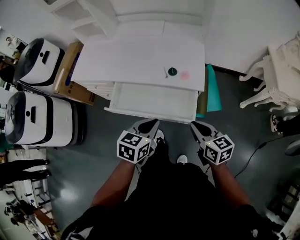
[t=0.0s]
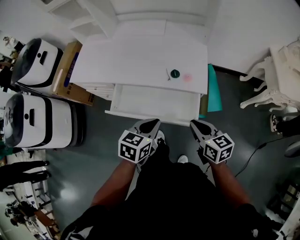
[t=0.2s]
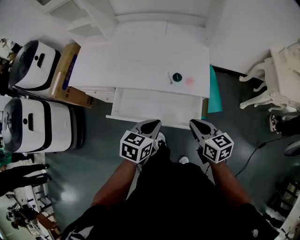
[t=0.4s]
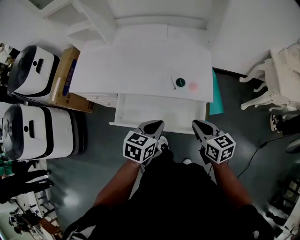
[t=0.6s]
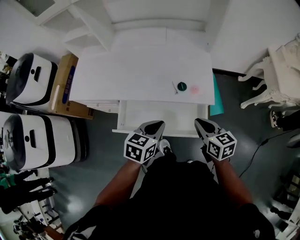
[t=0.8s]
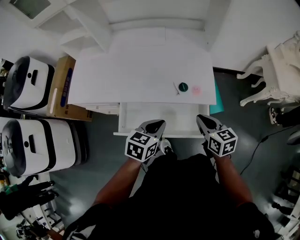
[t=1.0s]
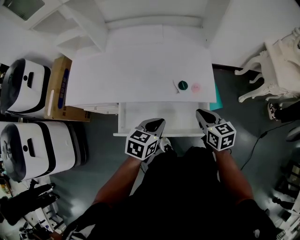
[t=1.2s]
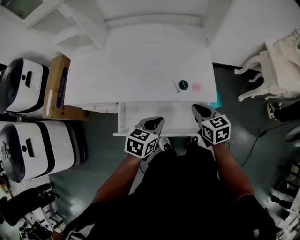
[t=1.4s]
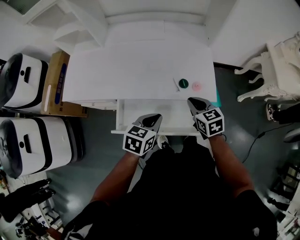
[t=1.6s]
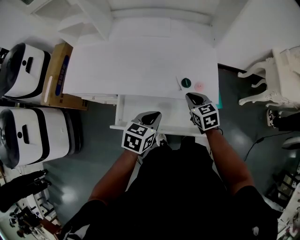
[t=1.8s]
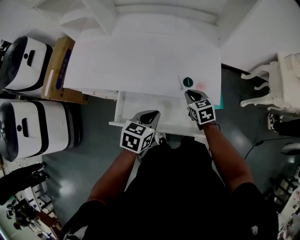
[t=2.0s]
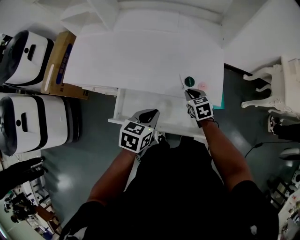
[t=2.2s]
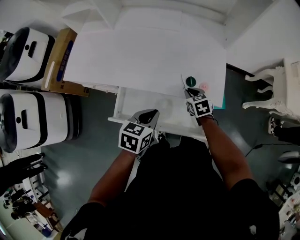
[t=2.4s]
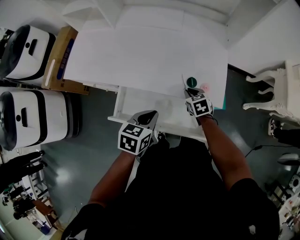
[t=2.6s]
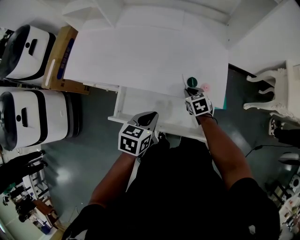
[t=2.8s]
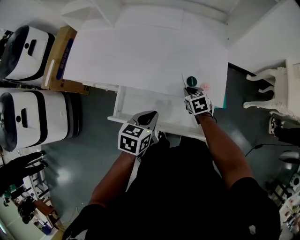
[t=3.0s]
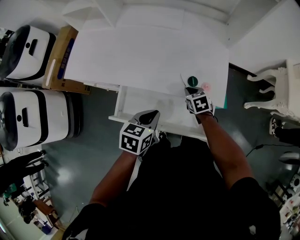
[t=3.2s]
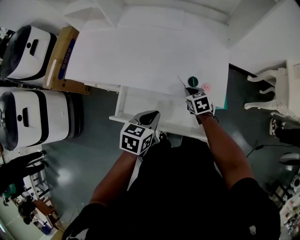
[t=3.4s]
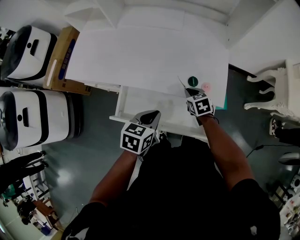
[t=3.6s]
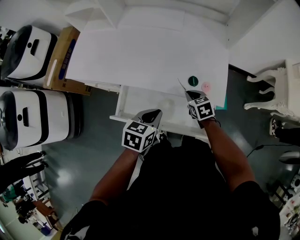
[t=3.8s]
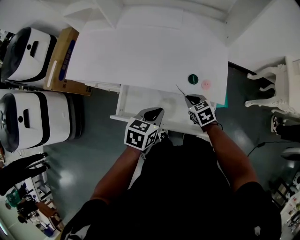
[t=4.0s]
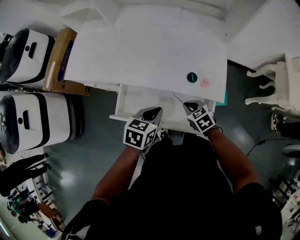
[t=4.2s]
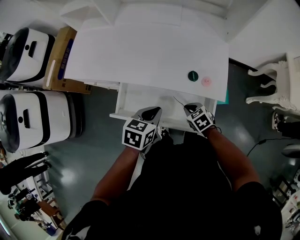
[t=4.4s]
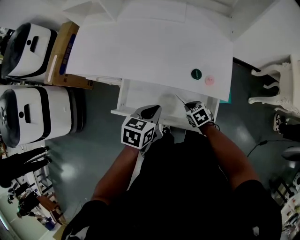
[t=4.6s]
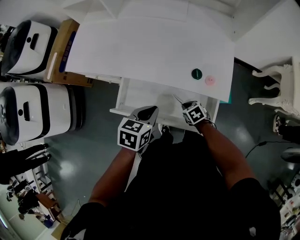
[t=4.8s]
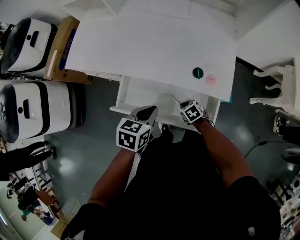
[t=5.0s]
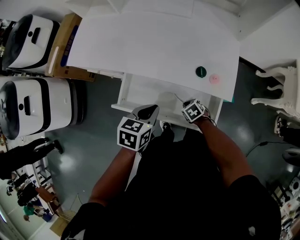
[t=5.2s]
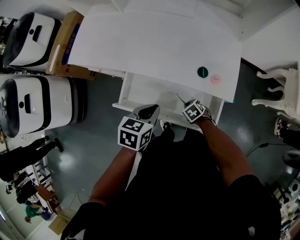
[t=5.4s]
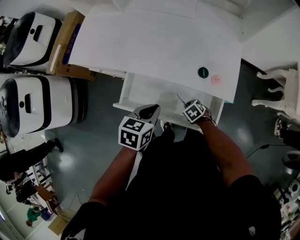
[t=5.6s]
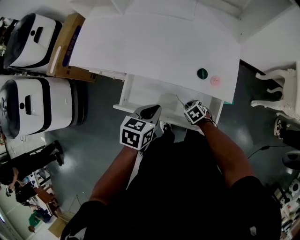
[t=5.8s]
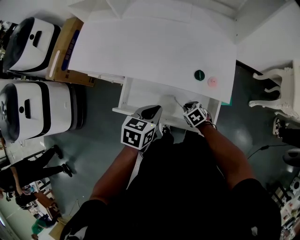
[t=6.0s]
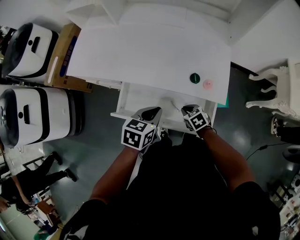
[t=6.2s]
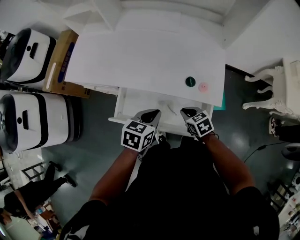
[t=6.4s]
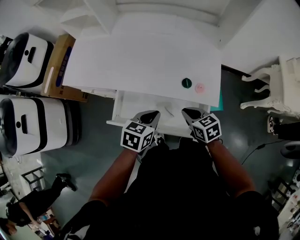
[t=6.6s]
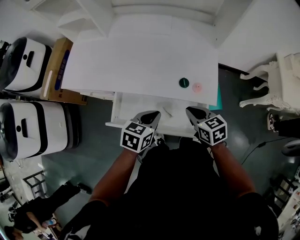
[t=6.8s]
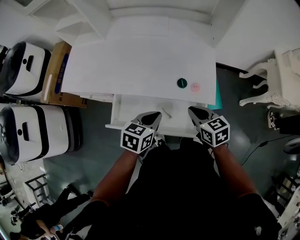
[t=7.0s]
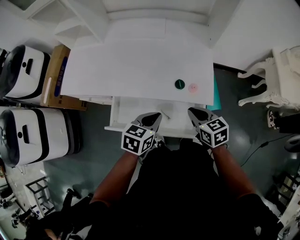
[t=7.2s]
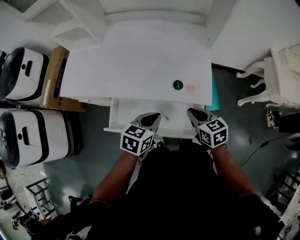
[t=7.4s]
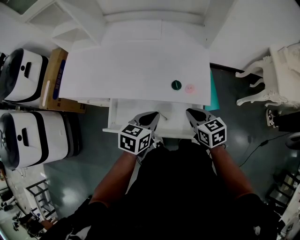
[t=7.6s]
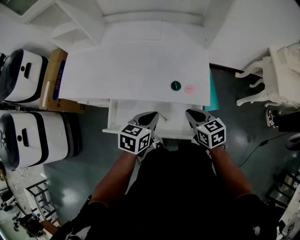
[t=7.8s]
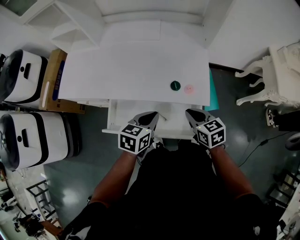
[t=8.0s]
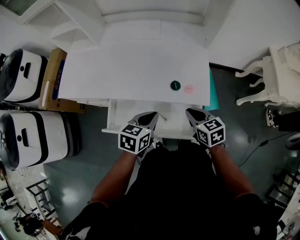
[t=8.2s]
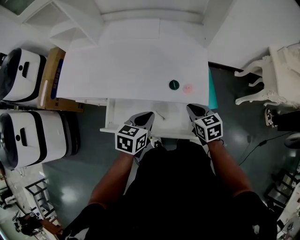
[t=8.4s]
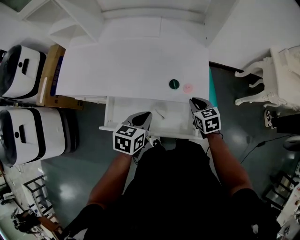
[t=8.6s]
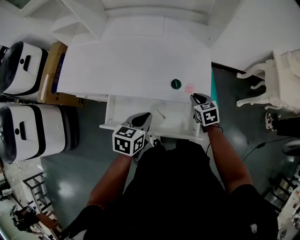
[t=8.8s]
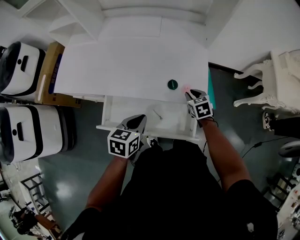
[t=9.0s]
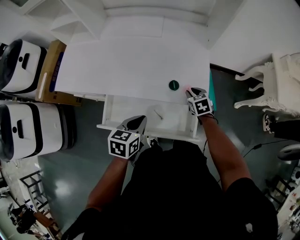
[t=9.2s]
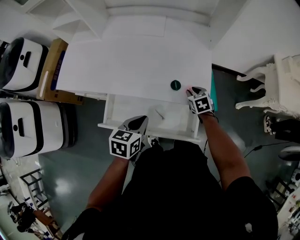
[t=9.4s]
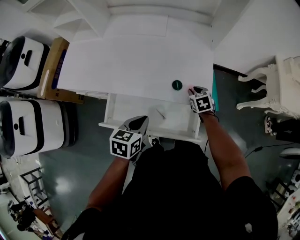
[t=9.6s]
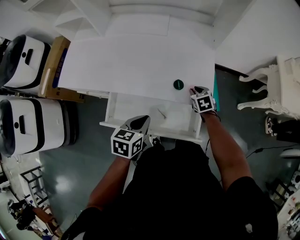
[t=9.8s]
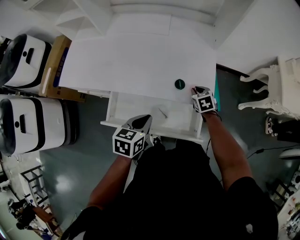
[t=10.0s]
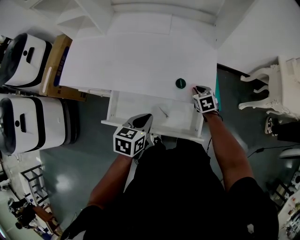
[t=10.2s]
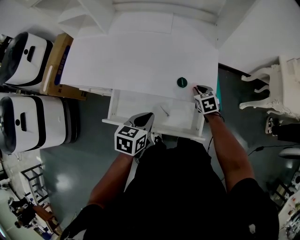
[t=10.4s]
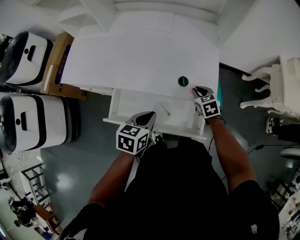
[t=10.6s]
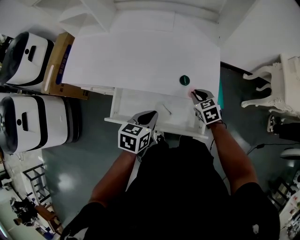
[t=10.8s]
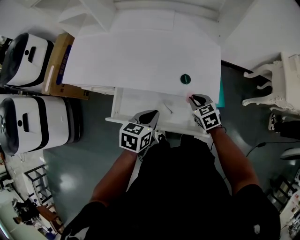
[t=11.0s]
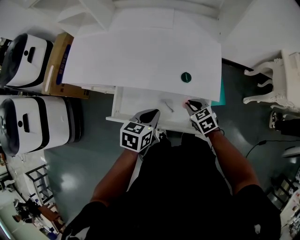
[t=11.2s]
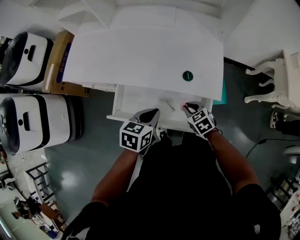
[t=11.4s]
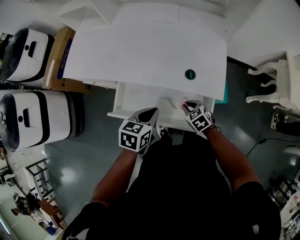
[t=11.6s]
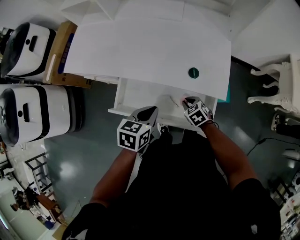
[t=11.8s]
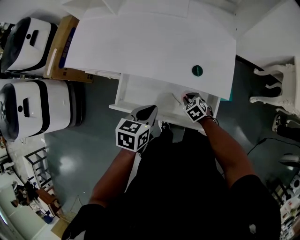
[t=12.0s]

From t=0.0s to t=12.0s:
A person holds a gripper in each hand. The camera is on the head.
From t=0.0s to t=1.6s: The left gripper shifts approximately 15 cm forward, to the left and downward. The right gripper goes about 25 cm forward and to the left, and turns by approximately 20 degrees.
From t=1.6s to t=3.0s: The right gripper moves downward and forward, some 15 cm.
From t=3.0s to t=4.4s: The right gripper moves backward, approximately 10 cm.
From t=4.4s to t=6.0s: The right gripper shifts about 5 cm downward.
From t=6.0s to t=7.6s: The right gripper travels upward by about 20 cm, and turns by roughly 40 degrees; the left gripper is displaced to the right by about 5 cm.
From t=7.6s to t=9.0s: The right gripper shifts about 15 cm forward and downward.
From t=9.0s to t=10.4s: The grippers stay close to where they were, moving slightly.
From t=10.4s to t=12.0s: The right gripper heads to the left, backward and downward, covering roughly 20 cm, and swivels roughly 20 degrees.

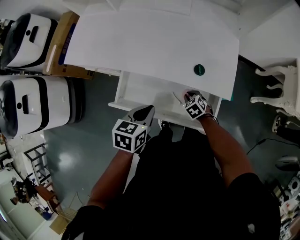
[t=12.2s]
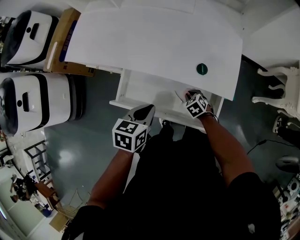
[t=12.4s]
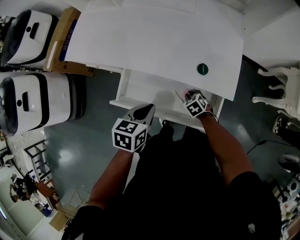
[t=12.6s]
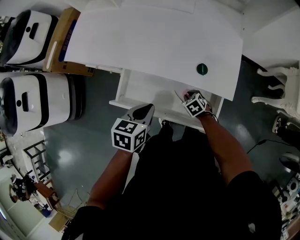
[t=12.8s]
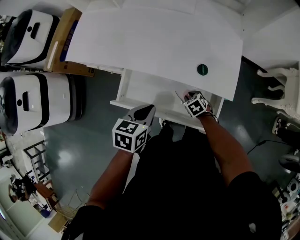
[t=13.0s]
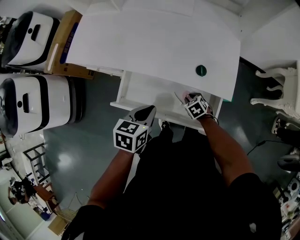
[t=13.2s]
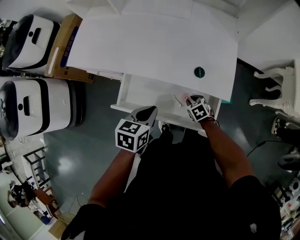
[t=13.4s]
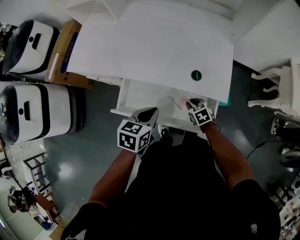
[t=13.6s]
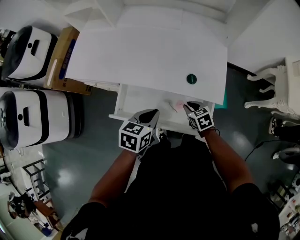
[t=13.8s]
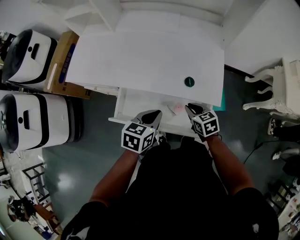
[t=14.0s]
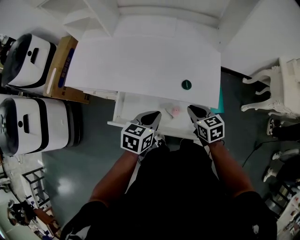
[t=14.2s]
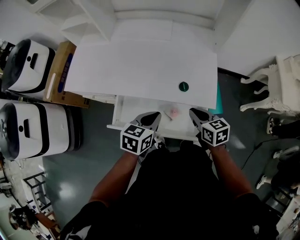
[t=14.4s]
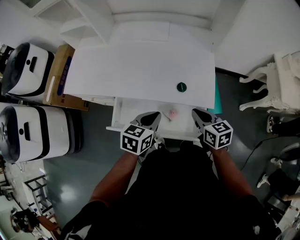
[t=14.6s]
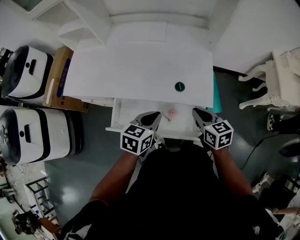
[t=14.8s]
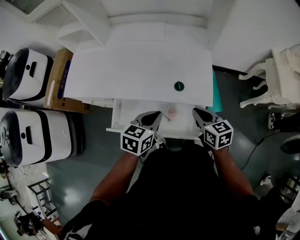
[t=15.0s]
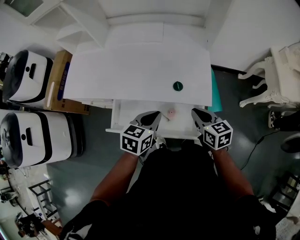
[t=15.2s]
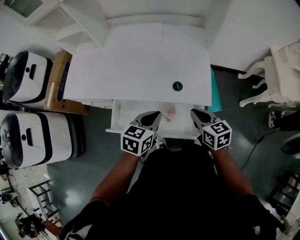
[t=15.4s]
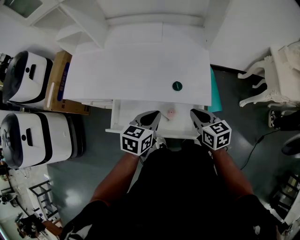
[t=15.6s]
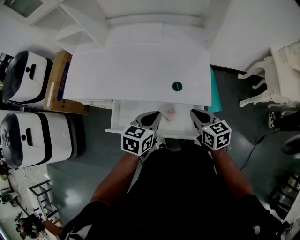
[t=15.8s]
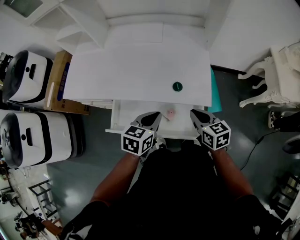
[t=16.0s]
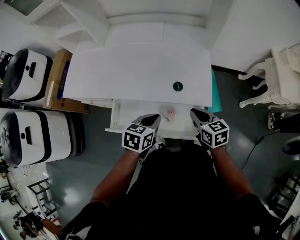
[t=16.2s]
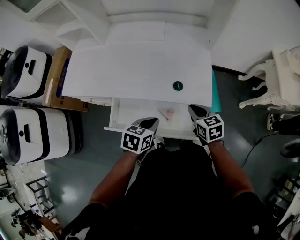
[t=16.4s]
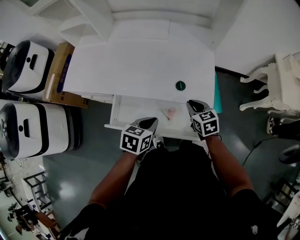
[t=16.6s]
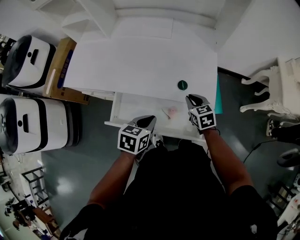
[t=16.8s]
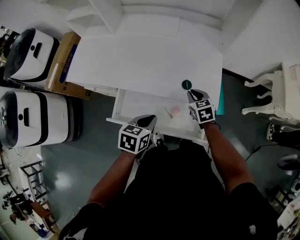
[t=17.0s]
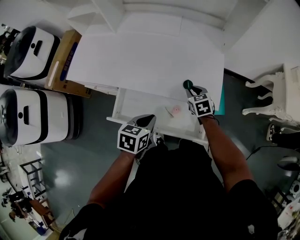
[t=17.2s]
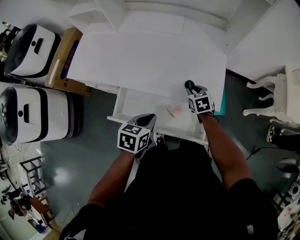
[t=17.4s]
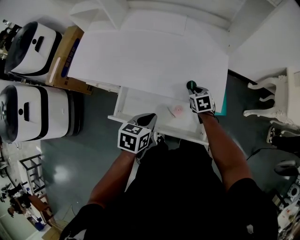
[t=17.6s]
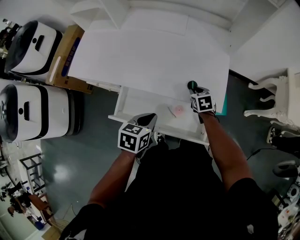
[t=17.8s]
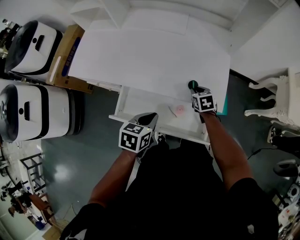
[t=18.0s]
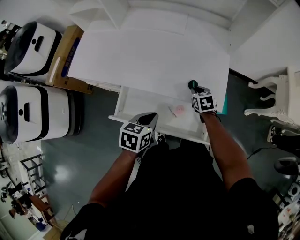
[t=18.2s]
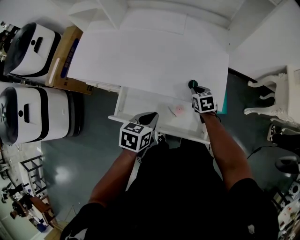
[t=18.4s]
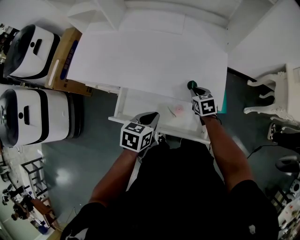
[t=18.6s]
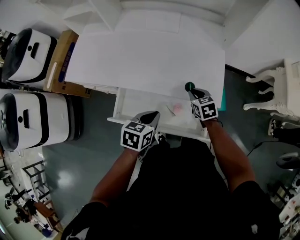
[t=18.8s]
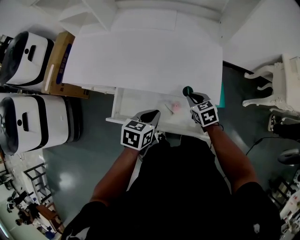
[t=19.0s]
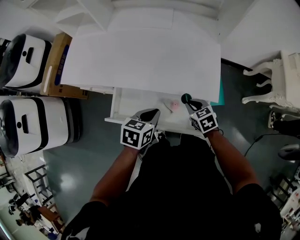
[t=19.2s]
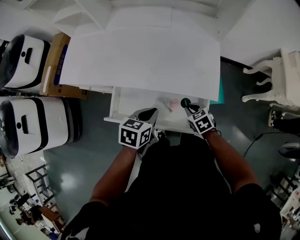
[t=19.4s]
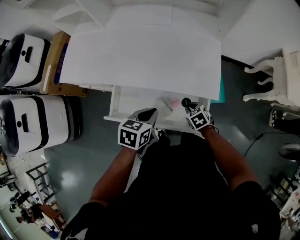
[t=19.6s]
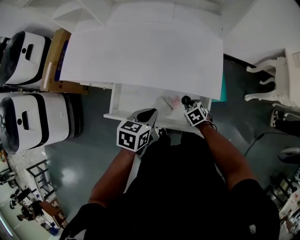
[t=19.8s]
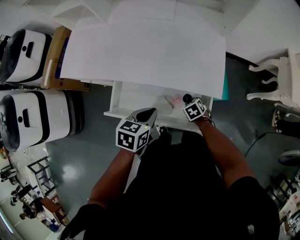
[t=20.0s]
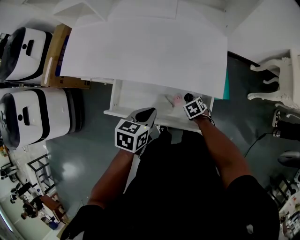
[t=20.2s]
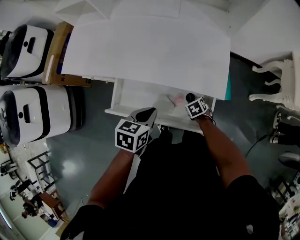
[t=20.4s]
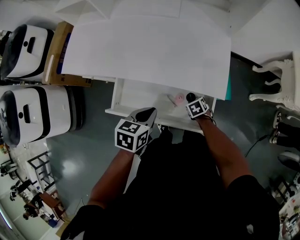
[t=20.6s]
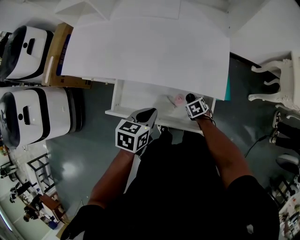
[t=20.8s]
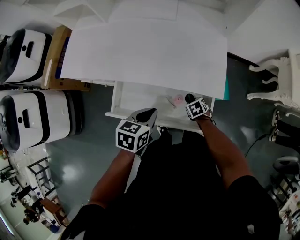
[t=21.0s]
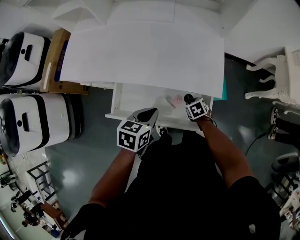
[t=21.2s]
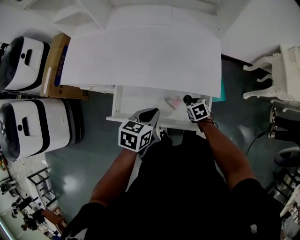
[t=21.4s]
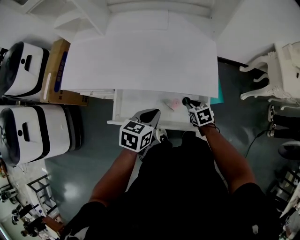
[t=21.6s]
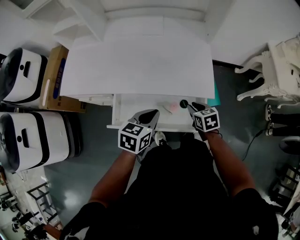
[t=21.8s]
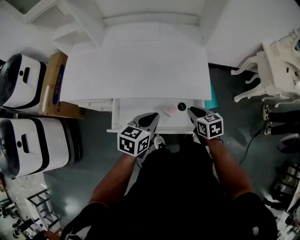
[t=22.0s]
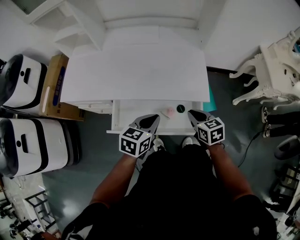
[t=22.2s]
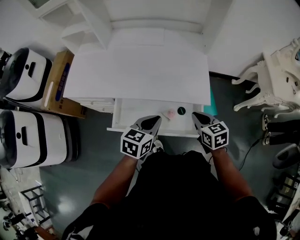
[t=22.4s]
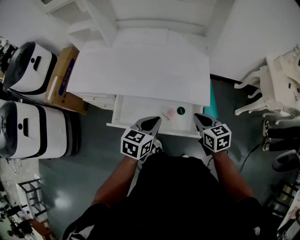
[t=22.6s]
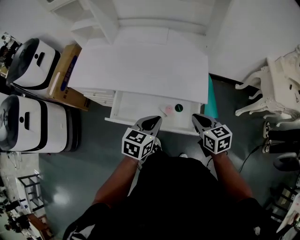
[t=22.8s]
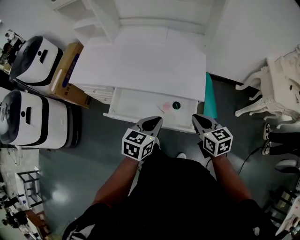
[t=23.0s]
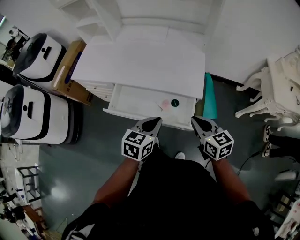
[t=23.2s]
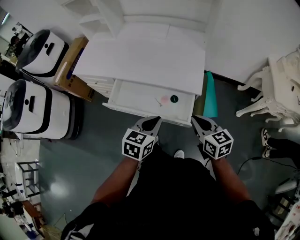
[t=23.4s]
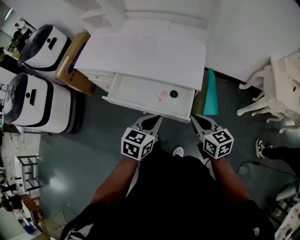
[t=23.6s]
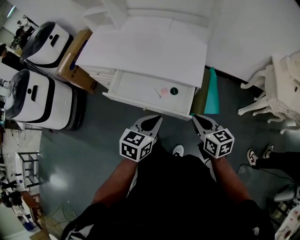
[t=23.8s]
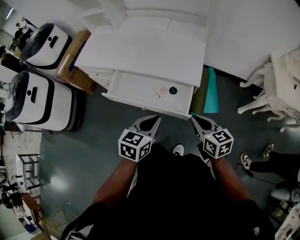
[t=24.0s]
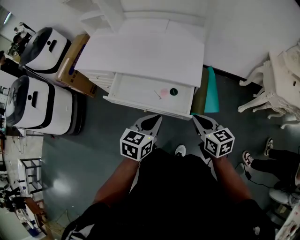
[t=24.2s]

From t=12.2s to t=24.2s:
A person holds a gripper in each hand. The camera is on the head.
From t=12.2s to t=13.8s: The right gripper is displaced upward by some 10 cm, and swivels about 20 degrees.
From t=13.8s to t=15.2s: The left gripper shifts approximately 5 cm to the right. The right gripper is displaced upward and to the right by approximately 20 cm, and swivels roughly 30 degrees.
From t=15.2s to t=16.6s: The left gripper ends up about 5 cm from where it was. Meanwhile the right gripper shifts roughly 5 cm downward.
From t=16.6s to t=18.2s: The right gripper is displaced downward and forward by roughly 10 cm.
From t=18.2s to t=19.8s: The right gripper shifts about 15 cm backward and downward.
From t=19.8s to t=21.2s: The grippers move only a little.
From t=21.2s to t=22.6s: The right gripper shifts some 25 cm upward, and points its fingers roughly 30 degrees further upward; the left gripper moves upward, approximately 5 cm.
From t=22.6s to t=24.2s: Both grippers travel together backward and to the right, about 15 cm.
